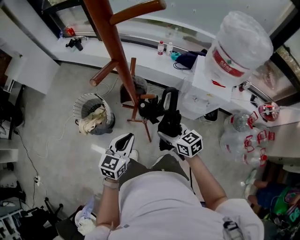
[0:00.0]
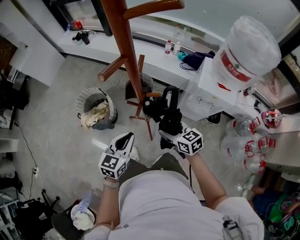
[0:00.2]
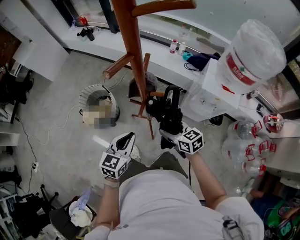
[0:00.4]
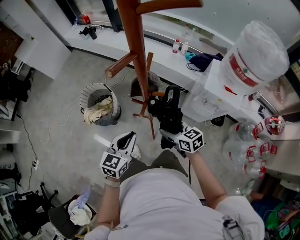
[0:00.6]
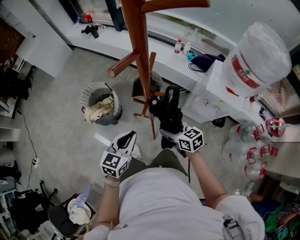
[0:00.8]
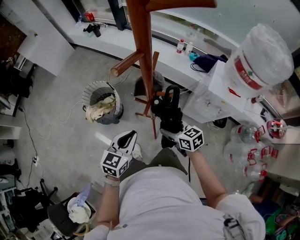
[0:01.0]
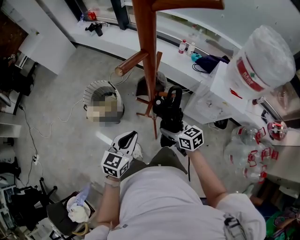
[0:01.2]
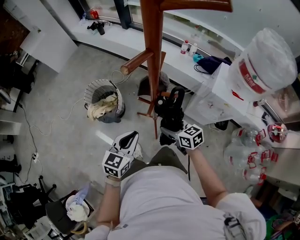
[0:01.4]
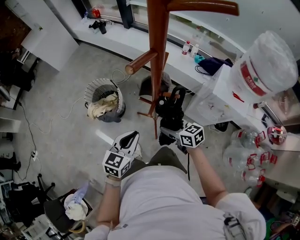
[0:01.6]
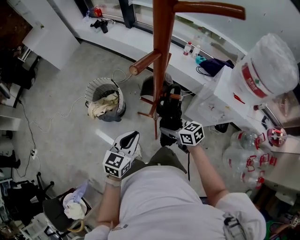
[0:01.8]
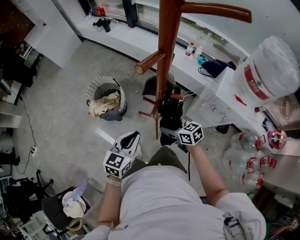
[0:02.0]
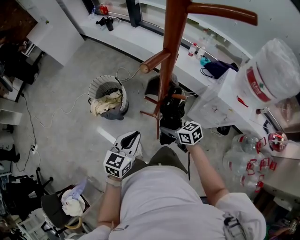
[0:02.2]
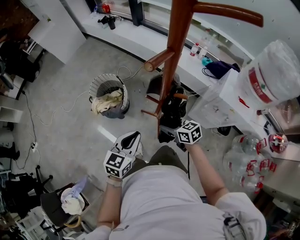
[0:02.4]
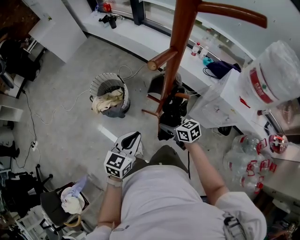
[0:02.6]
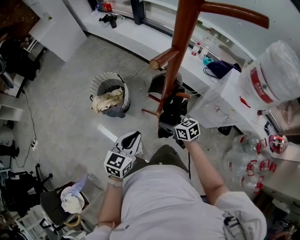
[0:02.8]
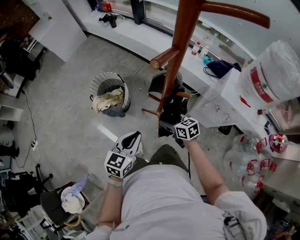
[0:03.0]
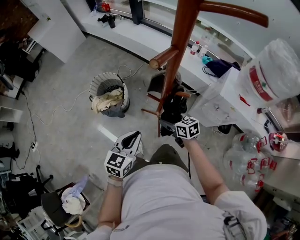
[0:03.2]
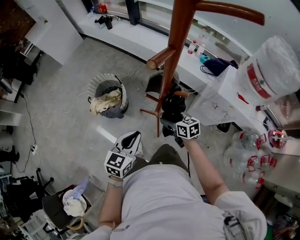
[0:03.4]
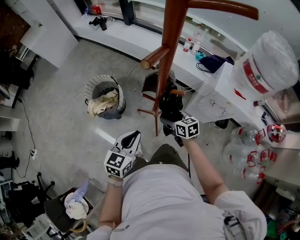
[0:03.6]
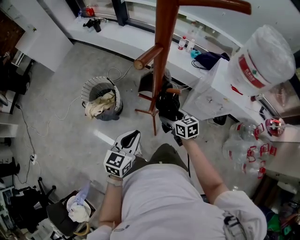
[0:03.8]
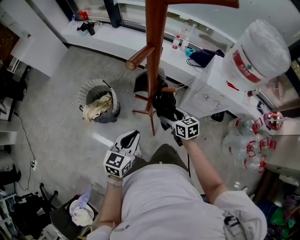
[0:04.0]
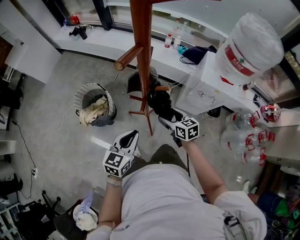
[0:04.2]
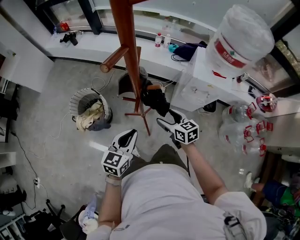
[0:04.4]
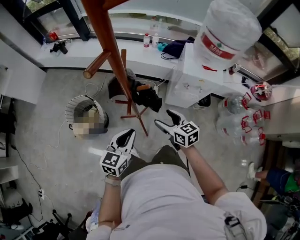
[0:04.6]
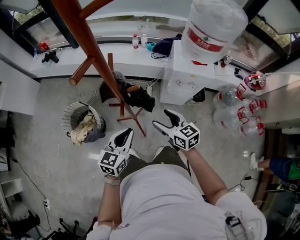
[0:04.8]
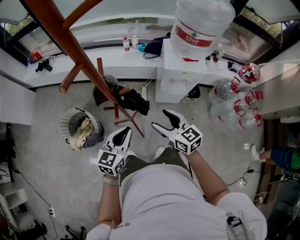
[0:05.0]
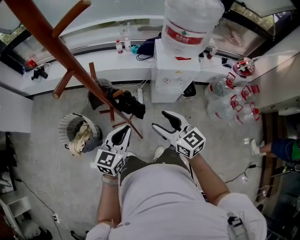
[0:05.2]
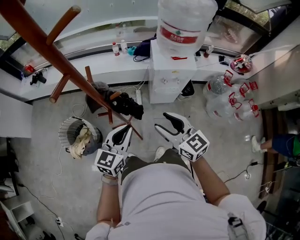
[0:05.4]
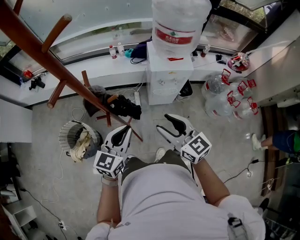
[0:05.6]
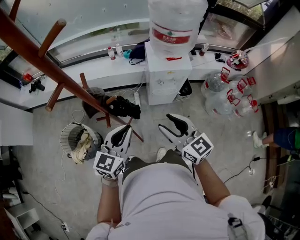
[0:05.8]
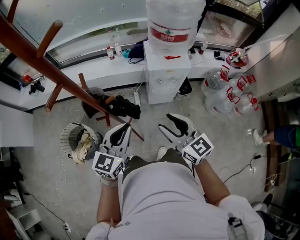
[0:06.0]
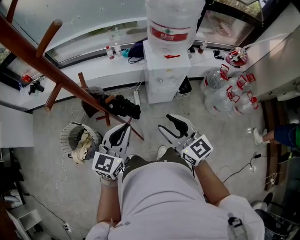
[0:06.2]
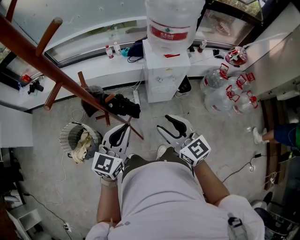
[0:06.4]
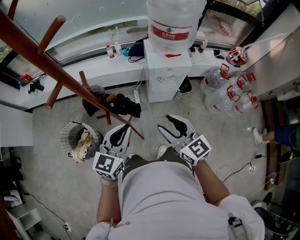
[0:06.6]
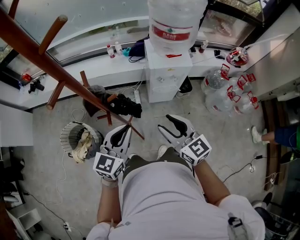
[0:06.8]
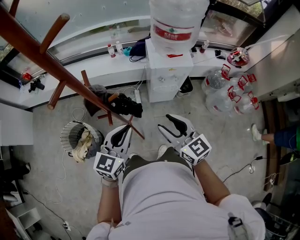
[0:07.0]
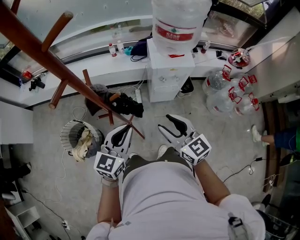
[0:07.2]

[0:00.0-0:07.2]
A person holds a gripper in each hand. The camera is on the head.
0:00.0 to 0:01.4: The right gripper shifts some 5 cm downward.
0:01.4 to 0:02.8: The right gripper ends up approximately 5 cm from where it was.
0:02.8 to 0:04.4: The right gripper heads to the right, covering some 10 cm, and swivels about 30 degrees.
0:04.4 to 0:05.8: The right gripper shifts some 25 cm upward, to the right and backward, changes its angle by some 30 degrees, and closes. The left gripper is displaced to the right and upward by roughly 15 cm, and changes its angle by approximately 30 degrees.
0:05.8 to 0:07.2: The grippers move only a little.

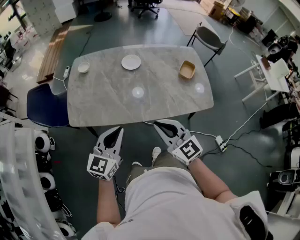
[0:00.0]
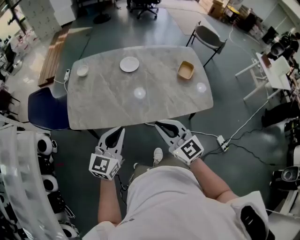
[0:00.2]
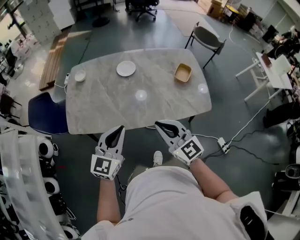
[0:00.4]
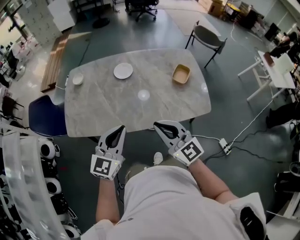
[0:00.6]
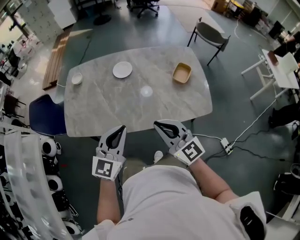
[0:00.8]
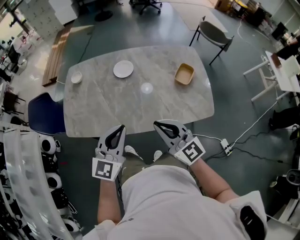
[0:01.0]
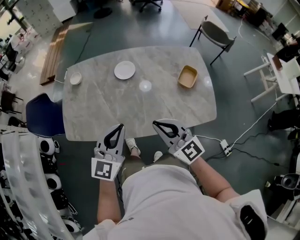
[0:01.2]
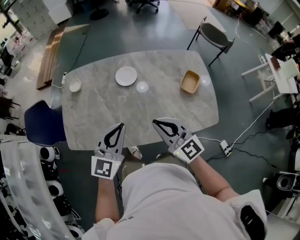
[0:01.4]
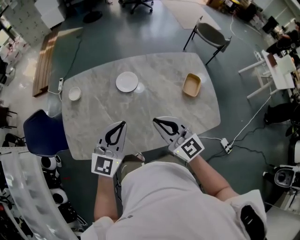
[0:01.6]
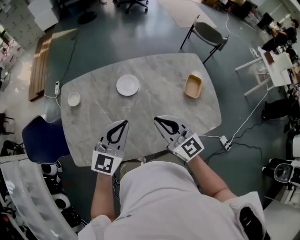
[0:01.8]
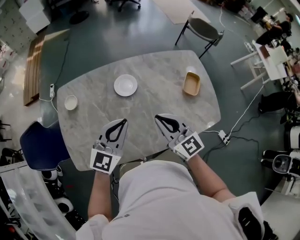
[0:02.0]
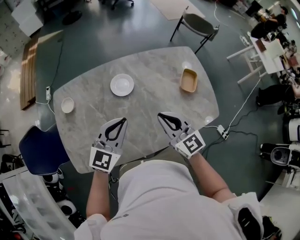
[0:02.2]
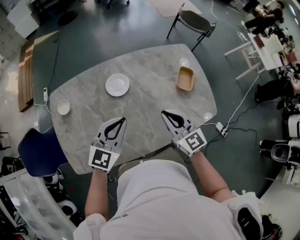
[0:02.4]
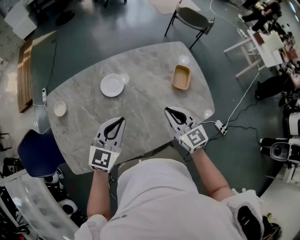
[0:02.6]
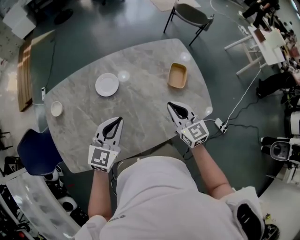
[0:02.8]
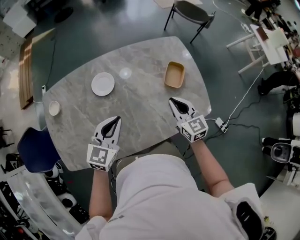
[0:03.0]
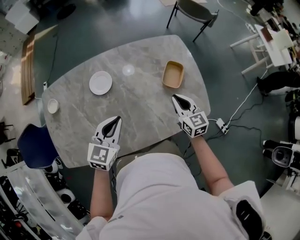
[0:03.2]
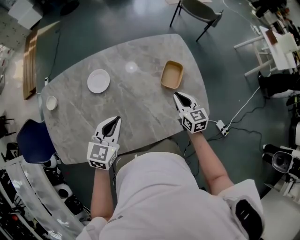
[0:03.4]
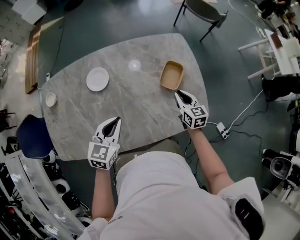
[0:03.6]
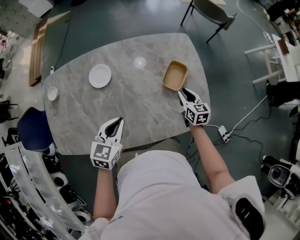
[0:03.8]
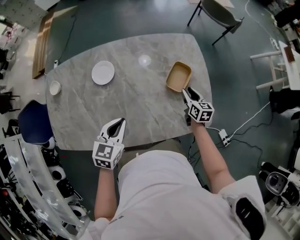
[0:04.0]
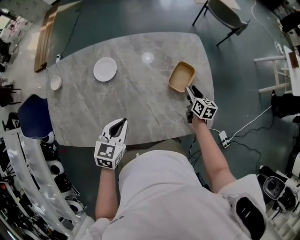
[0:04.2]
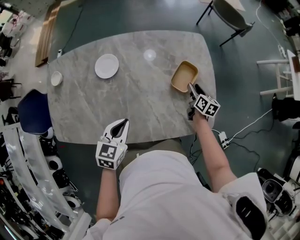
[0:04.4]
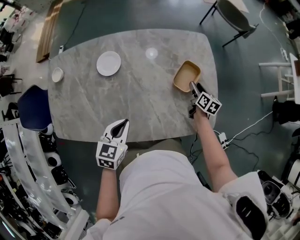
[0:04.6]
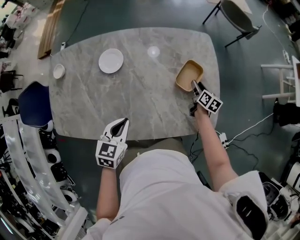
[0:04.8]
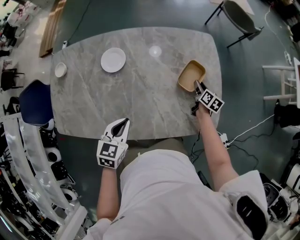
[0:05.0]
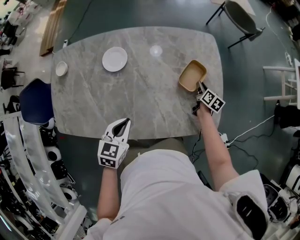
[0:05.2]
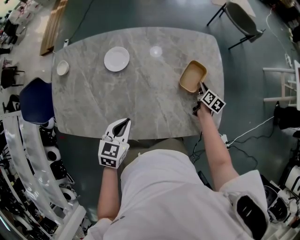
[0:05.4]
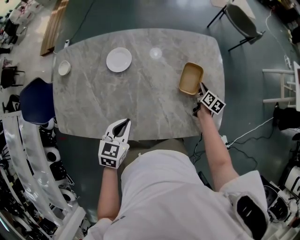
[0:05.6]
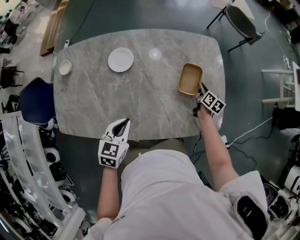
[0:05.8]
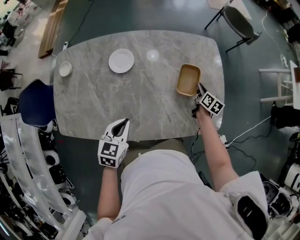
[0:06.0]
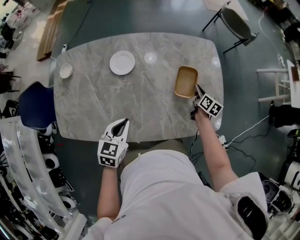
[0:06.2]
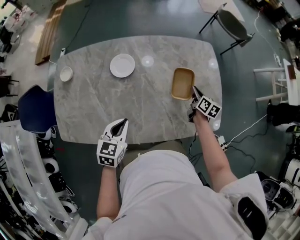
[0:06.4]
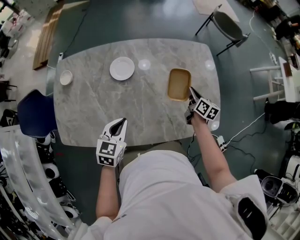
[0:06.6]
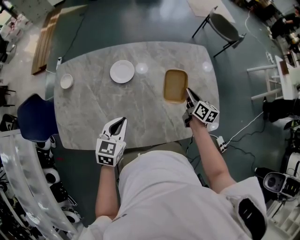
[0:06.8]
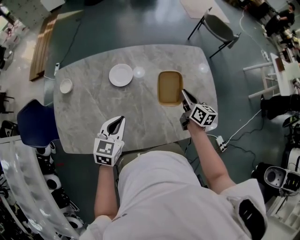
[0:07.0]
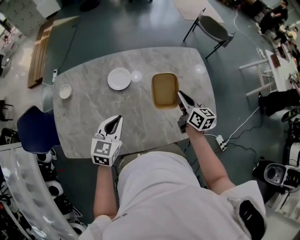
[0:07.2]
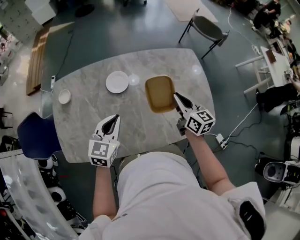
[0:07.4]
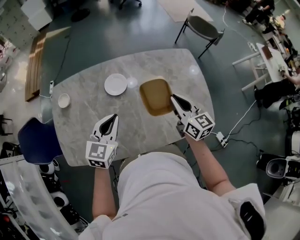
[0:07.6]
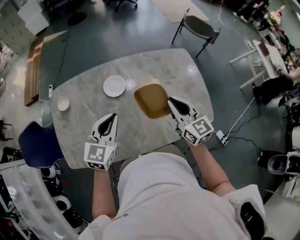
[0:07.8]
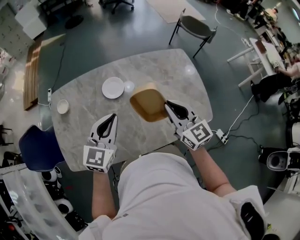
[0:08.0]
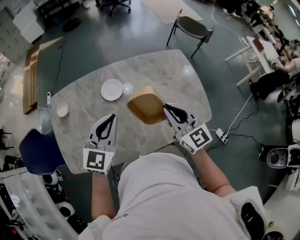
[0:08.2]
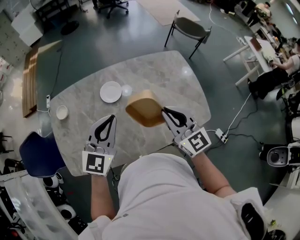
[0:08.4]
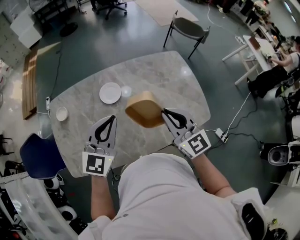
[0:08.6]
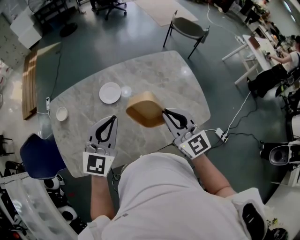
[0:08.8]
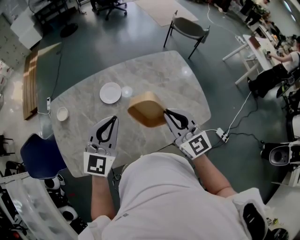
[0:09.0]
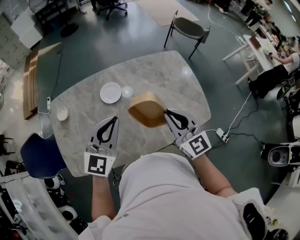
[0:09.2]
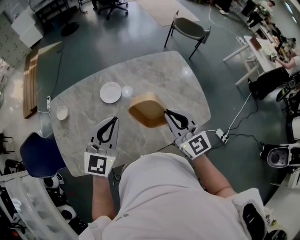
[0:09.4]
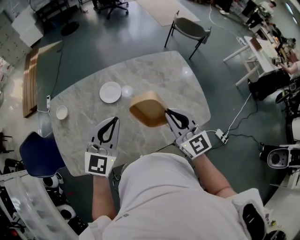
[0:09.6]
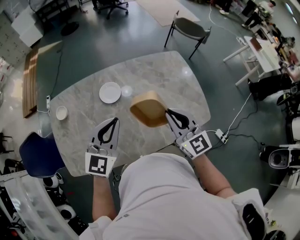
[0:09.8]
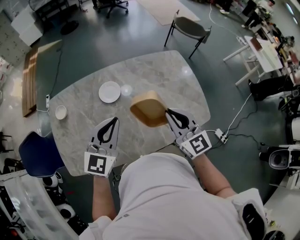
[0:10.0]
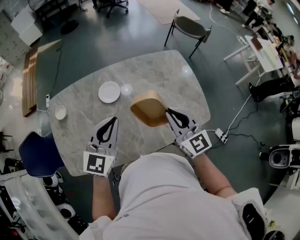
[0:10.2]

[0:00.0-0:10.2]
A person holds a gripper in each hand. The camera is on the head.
0:00.0 to 0:01.4: The two grippers go about 20 cm forward and to the right.
0:01.4 to 0:03.0: The right gripper shifts about 25 cm to the right, forward and downward, and turns by some 30 degrees, while the left gripper moves forward and downward, some 15 cm, and swivels approximately 20 degrees.
0:03.0 to 0:04.4: The right gripper heads downward, to the right and forward, covering about 30 cm, turns by approximately 40 degrees, and opens. The left gripper moves to the right and downward, some 10 cm, and rotates approximately 30 degrees.
0:04.4 to 0:05.8: The right gripper closes its fingers. The left gripper heads to the left, covering some 5 cm.
0:05.8 to 0:07.2: The right gripper shifts roughly 25 cm upward, to the left and backward, and turns by roughly 20 degrees. The left gripper moves to the left and upward, roughly 10 cm.
0:07.2 to 0:08.8: The left gripper goes about 15 cm upward, and turns by some 30 degrees; the right gripper shifts some 20 cm upward, backward and to the left, and turns by some 40 degrees.
0:08.8 to 0:10.2: The grippers move only a little.

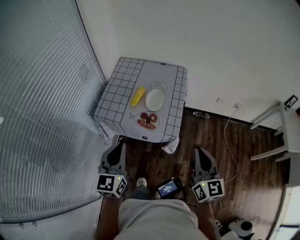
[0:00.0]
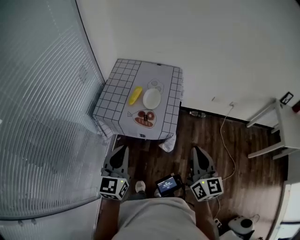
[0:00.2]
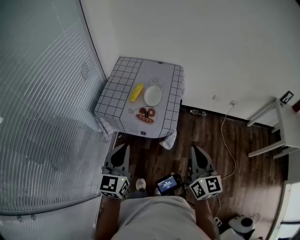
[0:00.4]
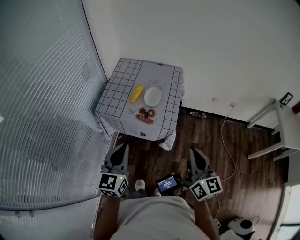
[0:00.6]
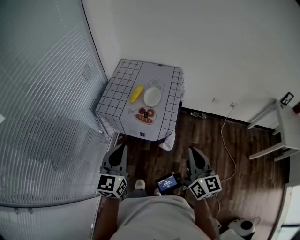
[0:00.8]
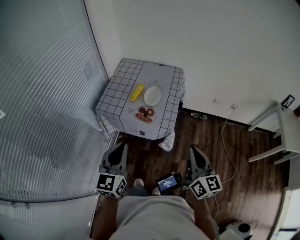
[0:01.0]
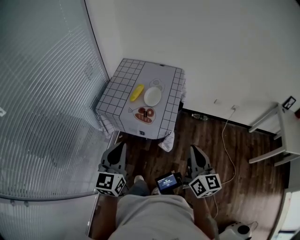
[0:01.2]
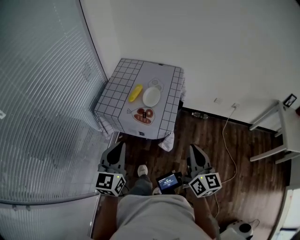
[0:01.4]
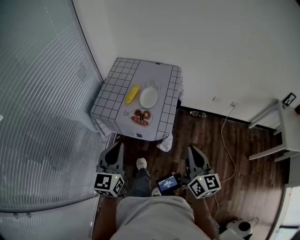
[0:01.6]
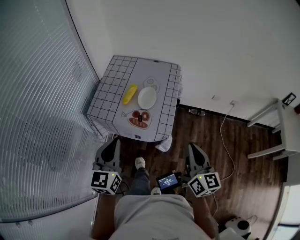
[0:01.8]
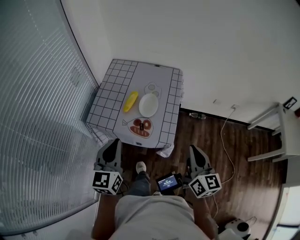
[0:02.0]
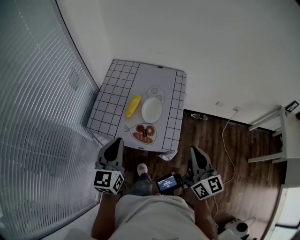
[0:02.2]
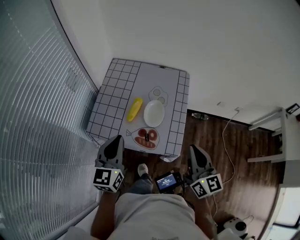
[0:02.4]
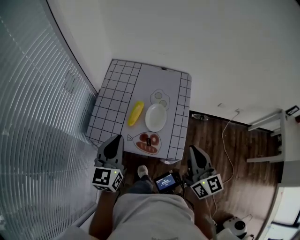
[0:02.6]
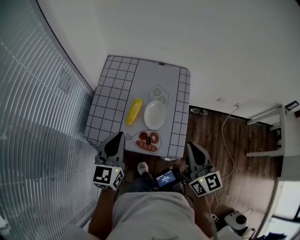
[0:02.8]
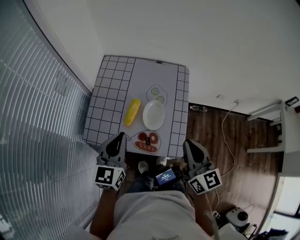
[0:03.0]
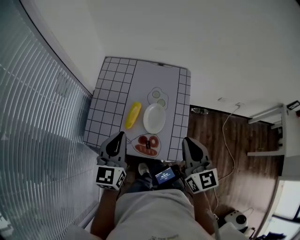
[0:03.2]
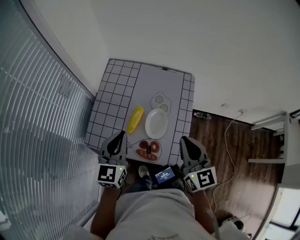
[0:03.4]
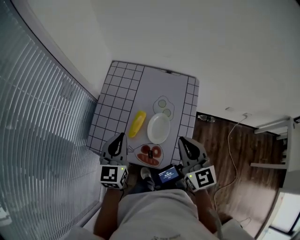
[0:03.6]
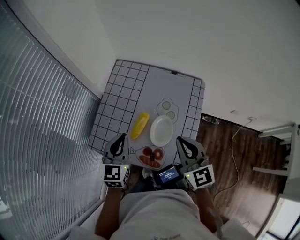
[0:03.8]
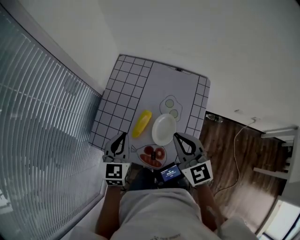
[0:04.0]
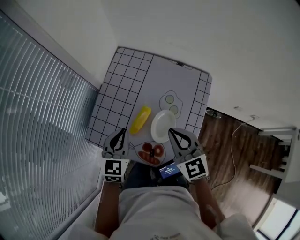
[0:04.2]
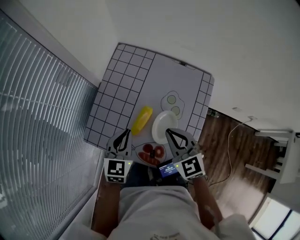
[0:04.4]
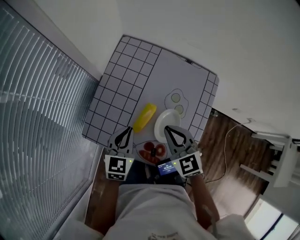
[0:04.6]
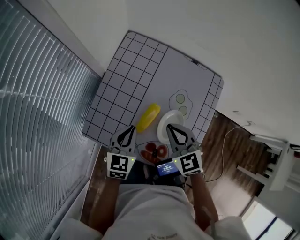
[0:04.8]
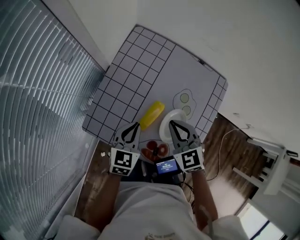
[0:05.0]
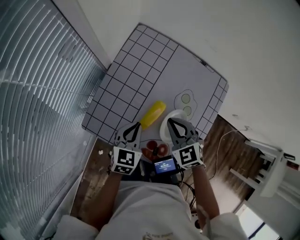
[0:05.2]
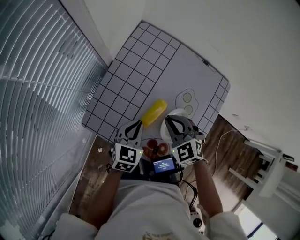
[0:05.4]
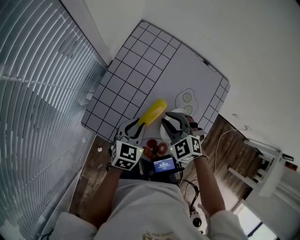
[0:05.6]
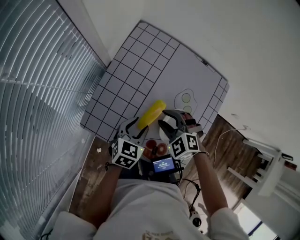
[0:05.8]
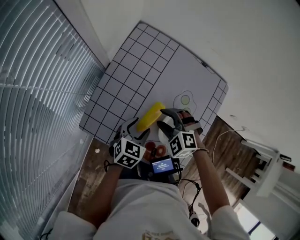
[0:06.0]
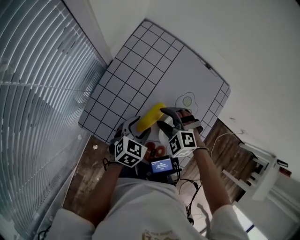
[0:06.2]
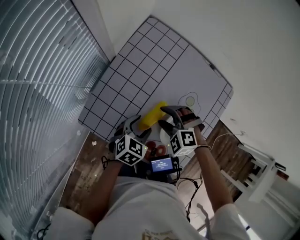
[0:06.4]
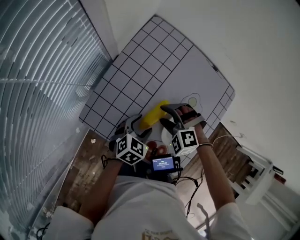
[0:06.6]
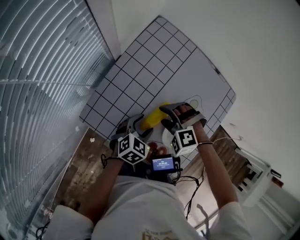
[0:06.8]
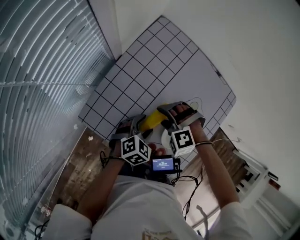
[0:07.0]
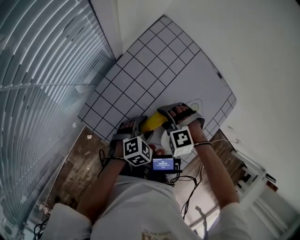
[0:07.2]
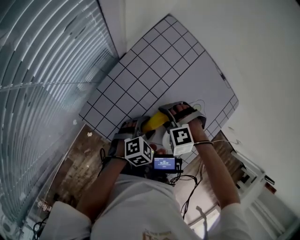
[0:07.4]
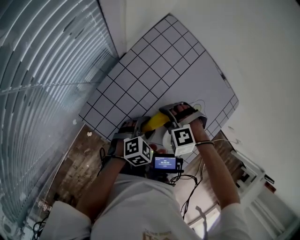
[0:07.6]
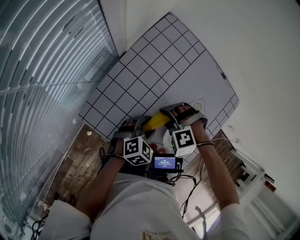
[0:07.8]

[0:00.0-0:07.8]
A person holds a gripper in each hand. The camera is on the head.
0:01.6 to 0:03.2: The two grippers go roughly 30 cm forward.
0:03.2 to 0:04.6: The left gripper heads downward and forward, covering roughly 15 cm; the right gripper is displaced forward, downward and to the left by about 20 cm, and changes its angle by about 40 degrees.
0:04.6 to 0:06.2: The left gripper travels downward by some 10 cm, rotates roughly 20 degrees, and opens its fingers; the right gripper moves downward and to the left, approximately 15 cm, swivels roughly 50 degrees, and opens its fingers.
0:06.2 to 0:07.8: The right gripper changes its angle by roughly 40 degrees.
